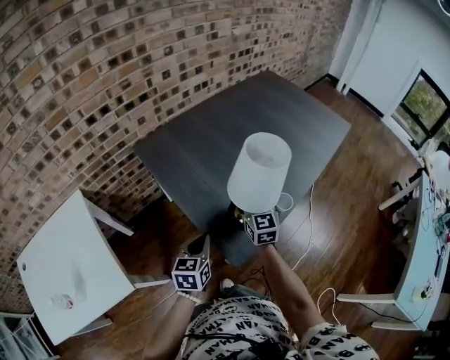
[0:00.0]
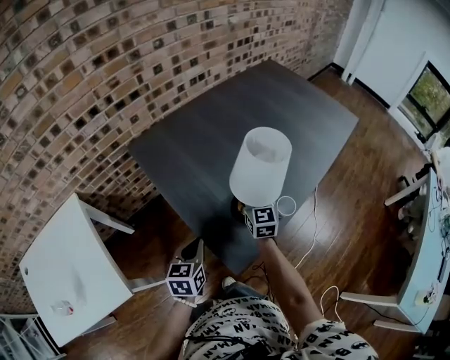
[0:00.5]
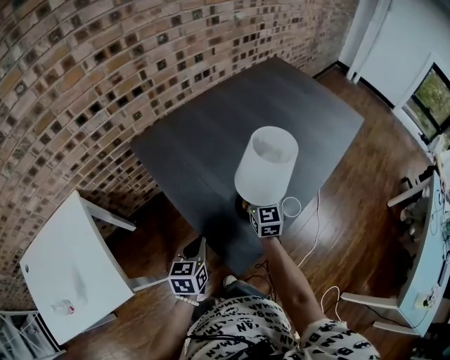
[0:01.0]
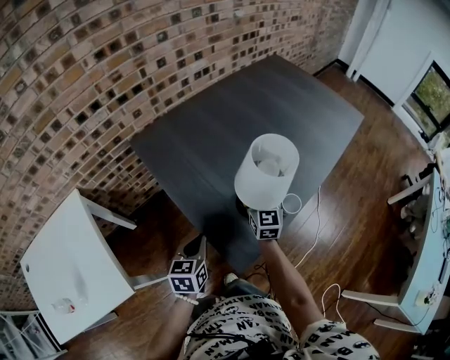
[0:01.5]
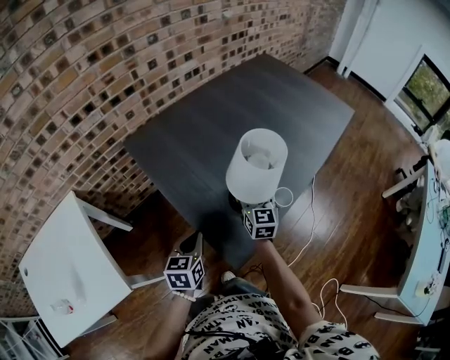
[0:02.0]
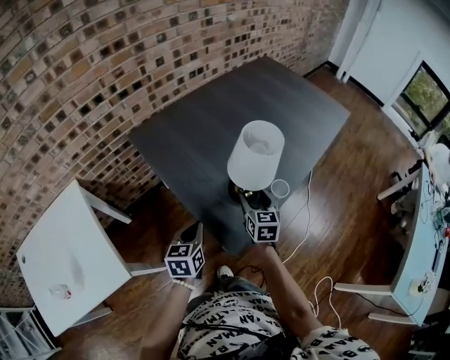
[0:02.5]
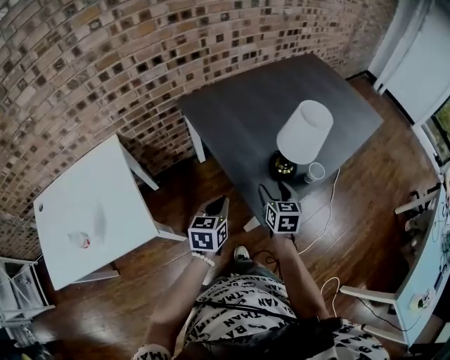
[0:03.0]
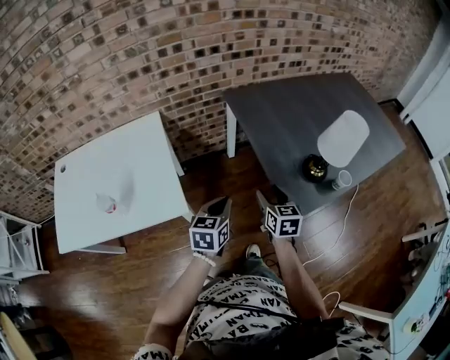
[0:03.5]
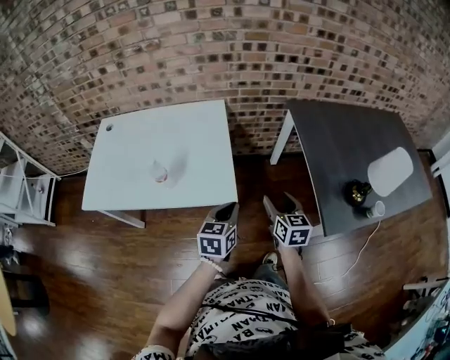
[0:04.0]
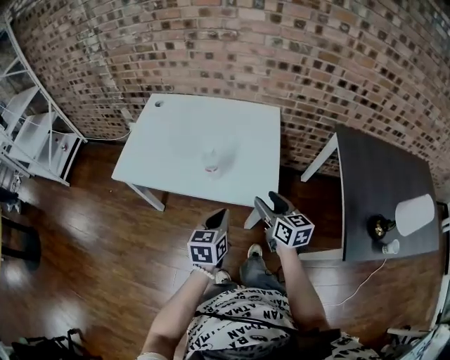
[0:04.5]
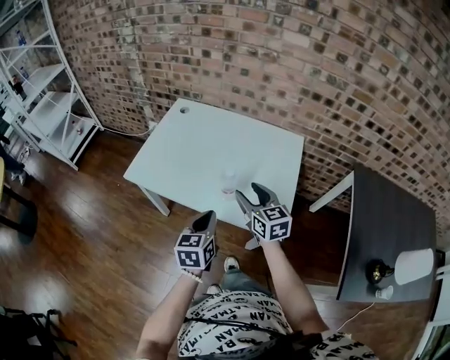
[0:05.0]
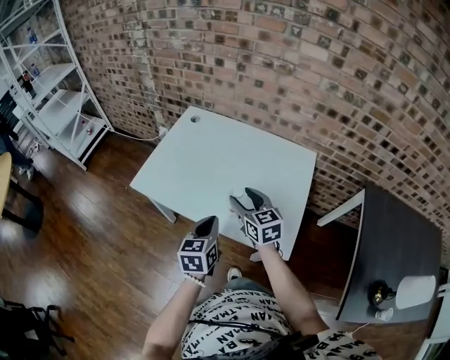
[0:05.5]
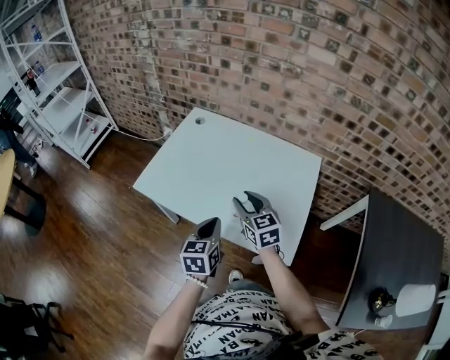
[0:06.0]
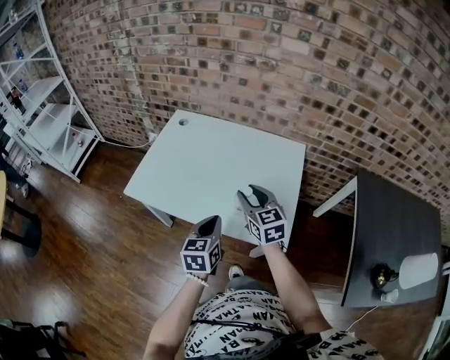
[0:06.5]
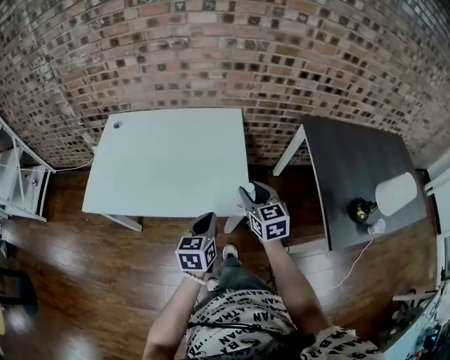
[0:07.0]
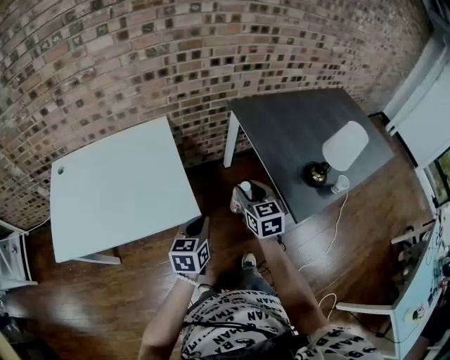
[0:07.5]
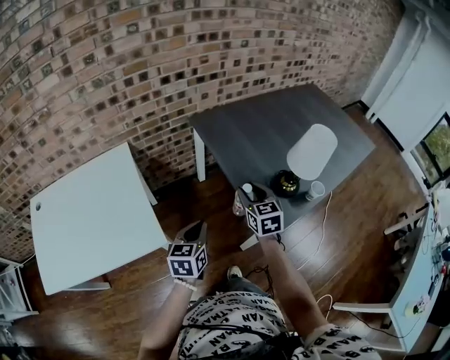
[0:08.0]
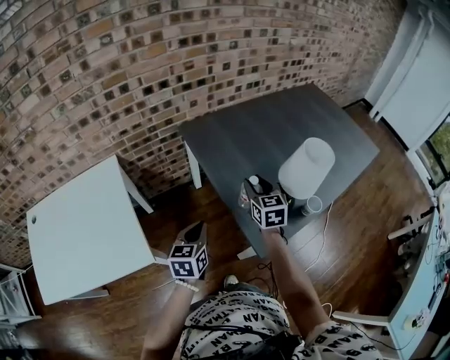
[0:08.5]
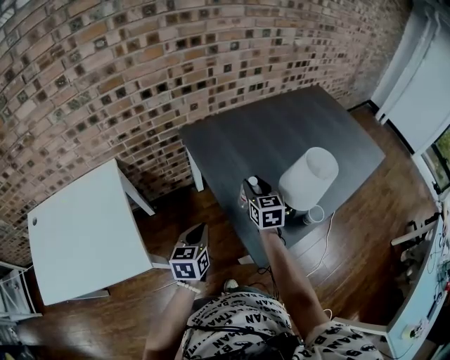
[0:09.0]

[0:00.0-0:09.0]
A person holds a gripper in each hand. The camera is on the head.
0:00.0 to 0:02.0: The right gripper goes approximately 5 cm downward, and opens its fingers.
0:02.0 to 0:04.5: The pair of grippers is taken some 60 cm. The left gripper turns by about 50 degrees, while the right gripper turns by some 70 degrees.
0:04.5 to 0:07.0: The right gripper swivels roughly 20 degrees.
0:07.0 to 0:09.0: The two grippers travel together, approximately 50 cm. The right gripper rotates some 40 degrees, while the left gripper changes its angle by roughly 30 degrees.

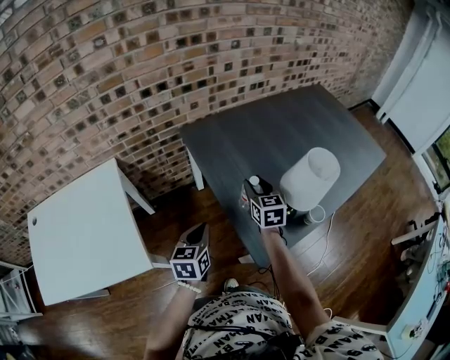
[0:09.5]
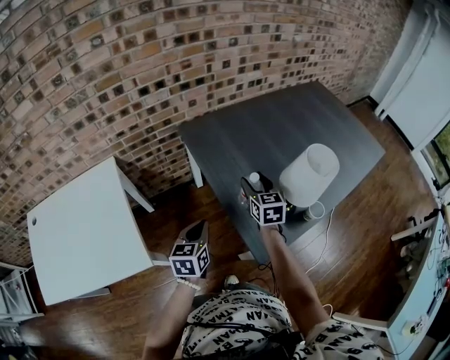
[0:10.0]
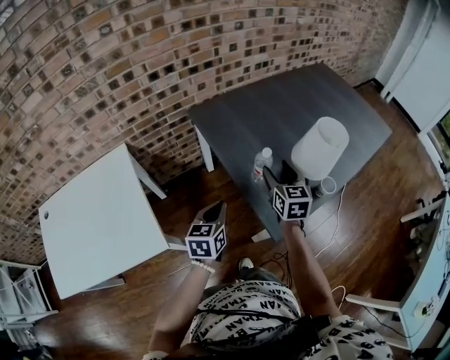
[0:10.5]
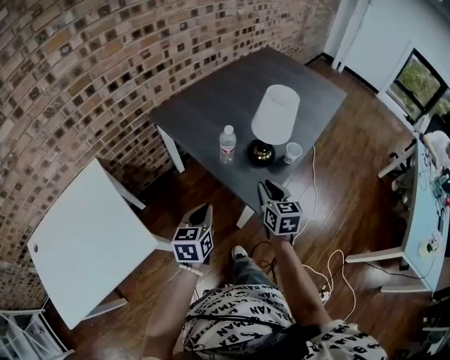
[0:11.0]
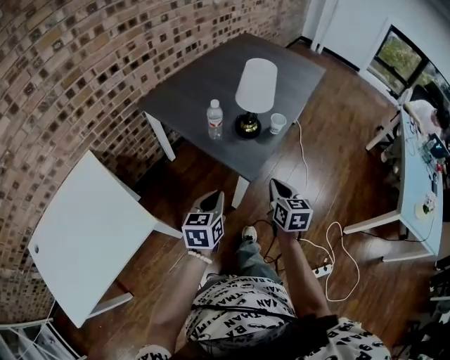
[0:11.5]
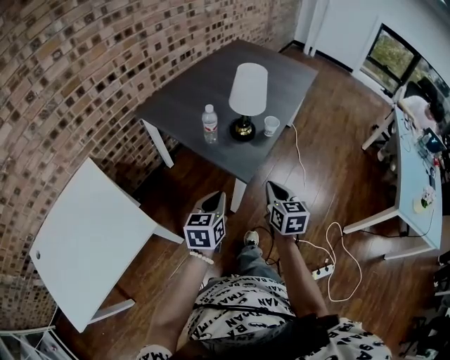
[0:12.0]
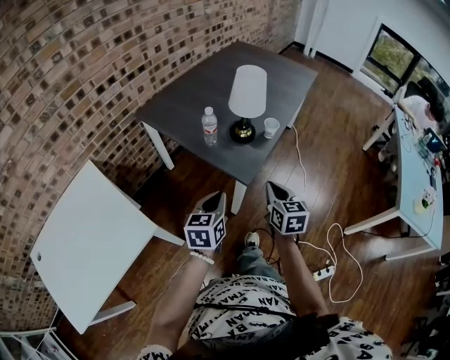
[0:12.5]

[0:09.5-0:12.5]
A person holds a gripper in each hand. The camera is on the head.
0:09.5 to 0:11.0: The left gripper shifts about 10 cm backward; the right gripper shifts about 20 cm backward, and swivels some 20 degrees.
0:11.0 to 0:12.5: The right gripper goes some 15 cm backward and to the right, while the left gripper travels to the right and backward by approximately 10 cm.

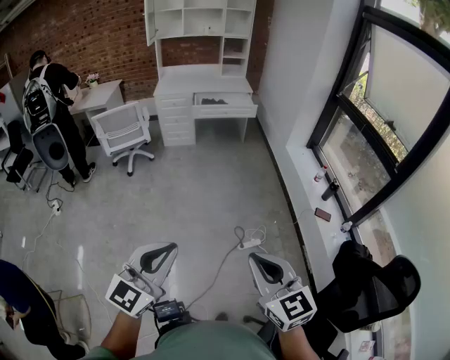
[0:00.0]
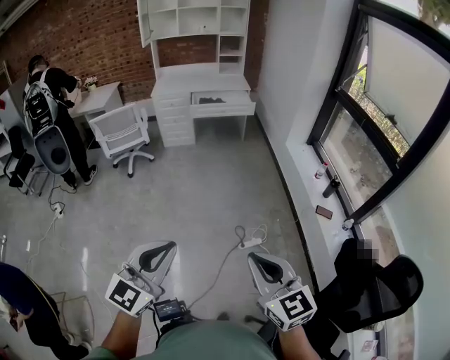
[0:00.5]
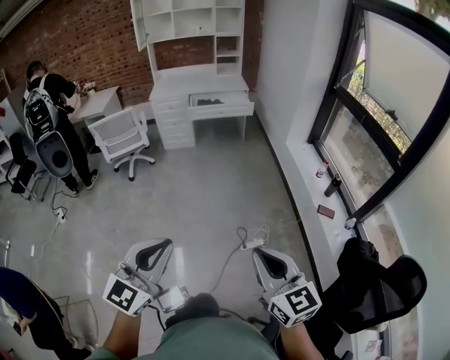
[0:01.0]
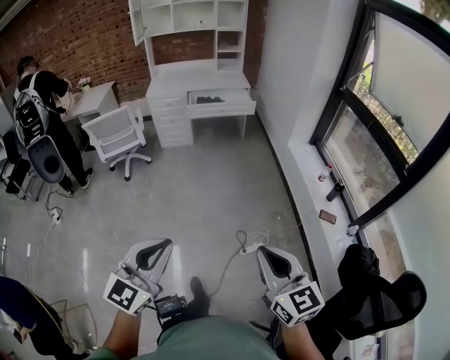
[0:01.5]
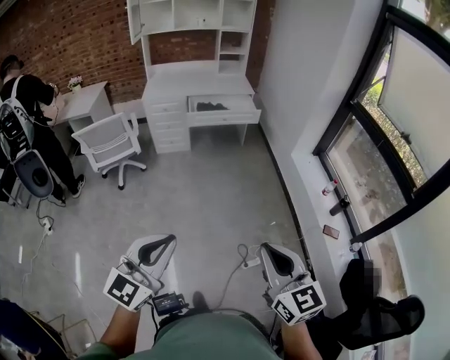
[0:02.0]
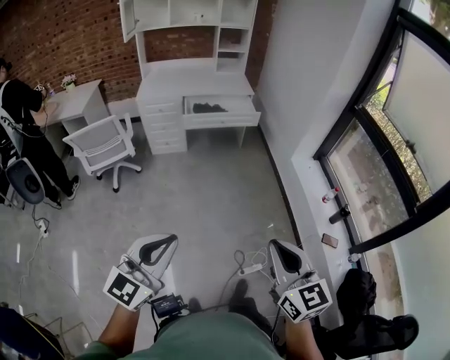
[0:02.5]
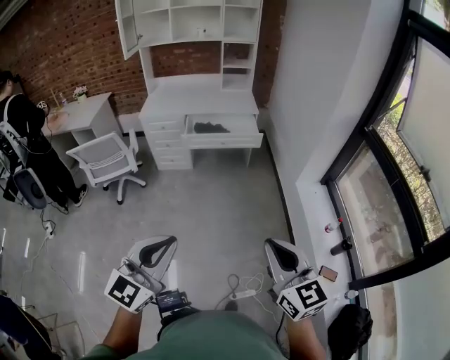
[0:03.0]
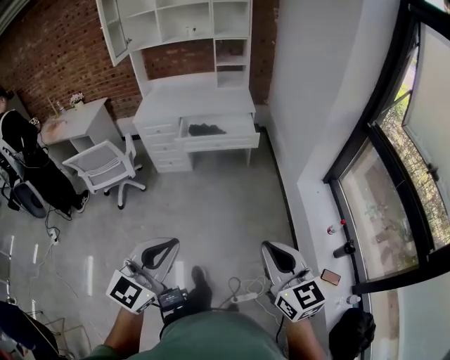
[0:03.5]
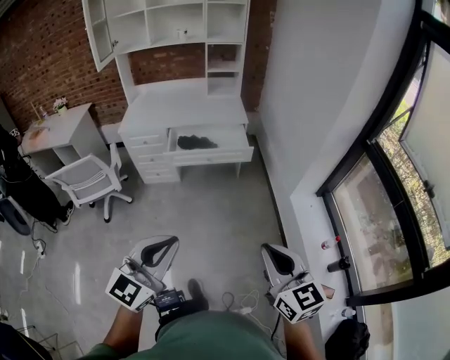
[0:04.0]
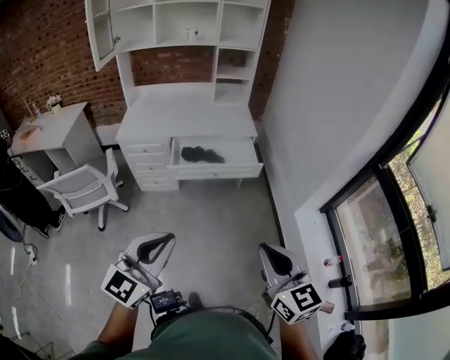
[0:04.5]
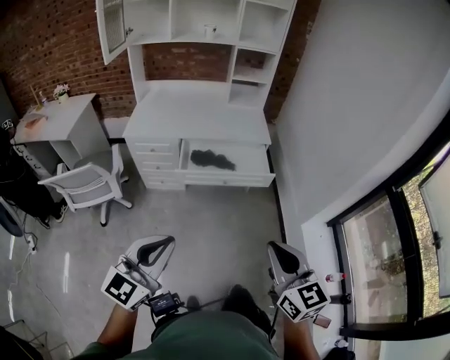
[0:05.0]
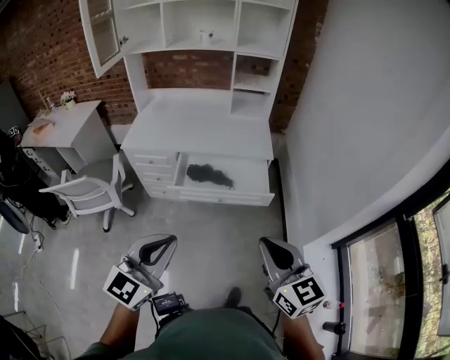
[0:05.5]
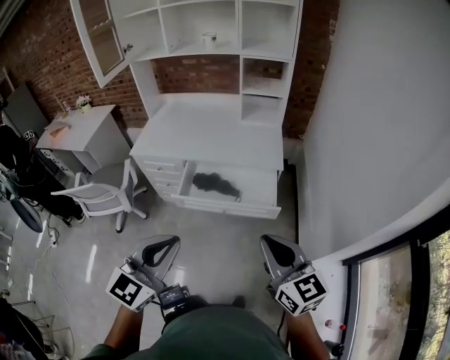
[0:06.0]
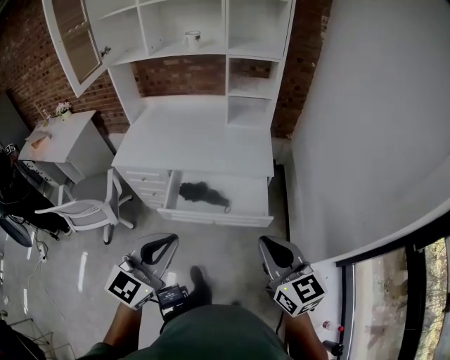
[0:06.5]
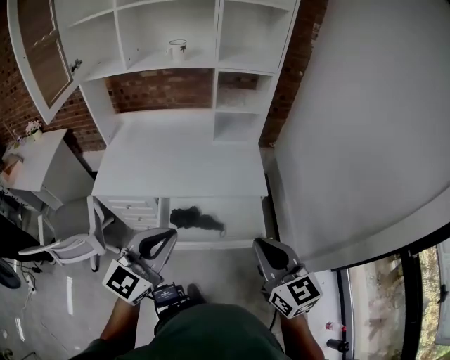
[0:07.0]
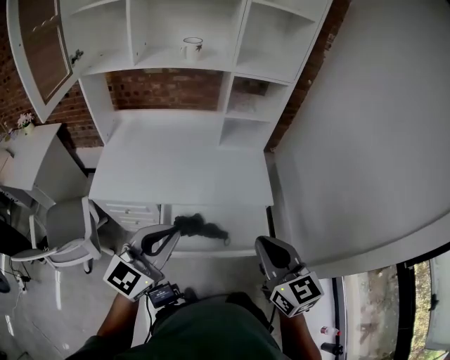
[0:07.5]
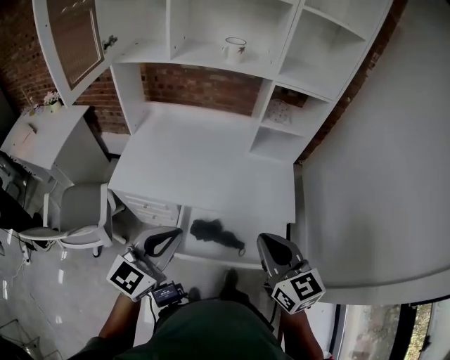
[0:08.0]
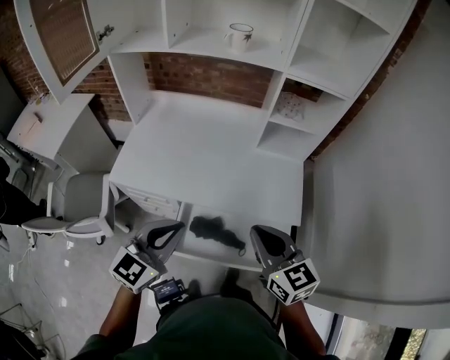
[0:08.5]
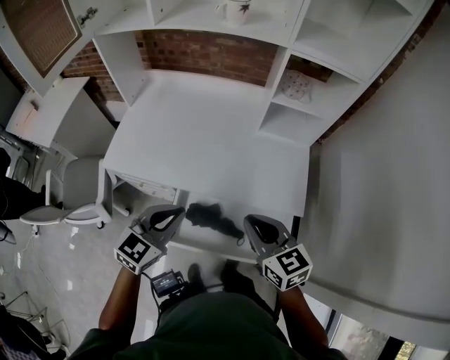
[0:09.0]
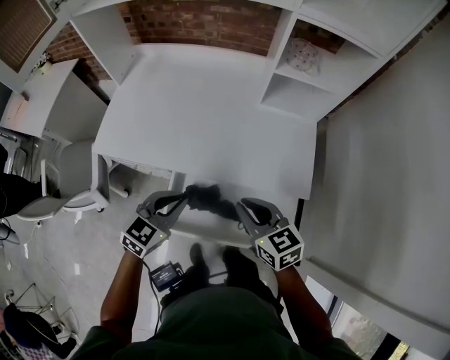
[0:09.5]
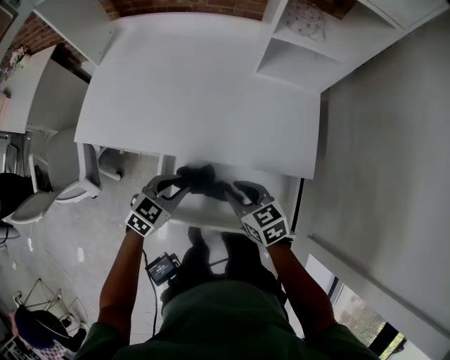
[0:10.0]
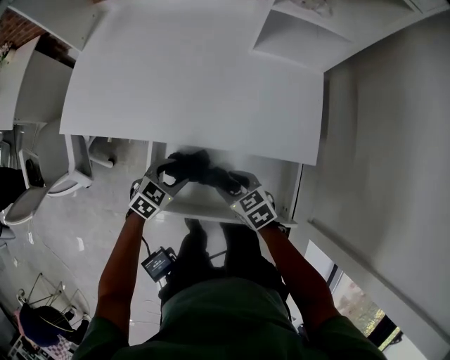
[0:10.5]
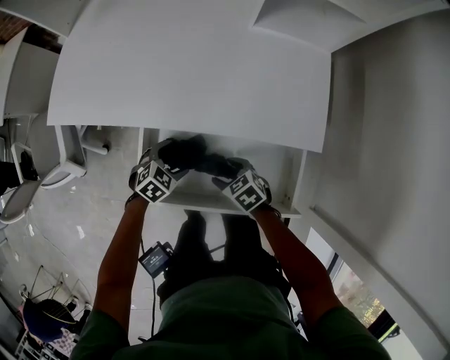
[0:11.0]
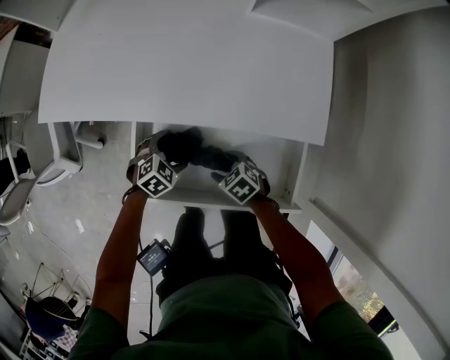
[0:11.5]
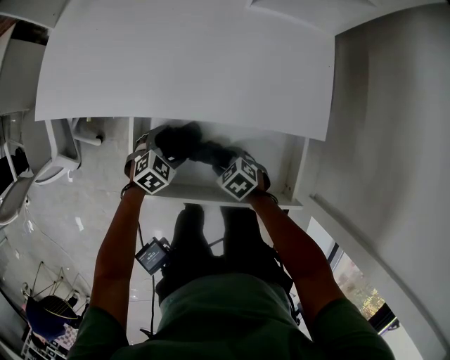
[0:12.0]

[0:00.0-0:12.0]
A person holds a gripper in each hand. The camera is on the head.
0:00.0 to 0:02.0: Both grippers travel together forward, roughly 30 cm.
0:02.0 to 0:04.0: The two grippers travel together, forward, about 50 cm.
0:04.0 to 0:06.0: The two grippers travel together, forward, about 50 cm.
0:06.0 to 0:08.0: Both grippers are carried forward and to the left, about 40 cm.
0:08.0 to 0:10.0: The two grippers go some 40 cm downward and forward. The left gripper angles its fingers downward, by some 40 degrees; the right gripper rotates about 30 degrees, and opens.
0:10.0 to 0:12.0: The two grippers go about 25 cm downward. The left gripper turns by approximately 20 degrees, and opens its fingers. Meanwhile the right gripper rotates approximately 30 degrees.

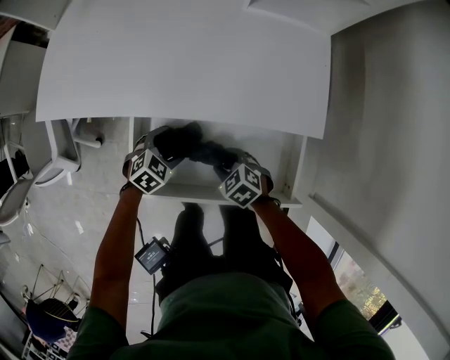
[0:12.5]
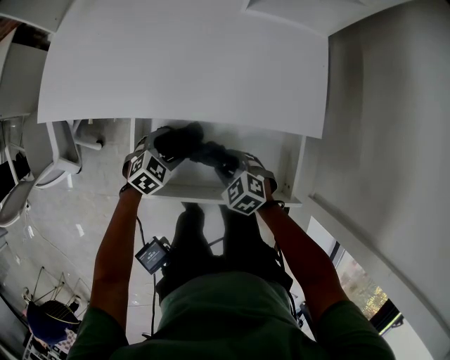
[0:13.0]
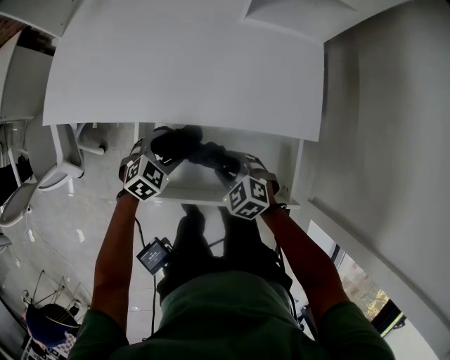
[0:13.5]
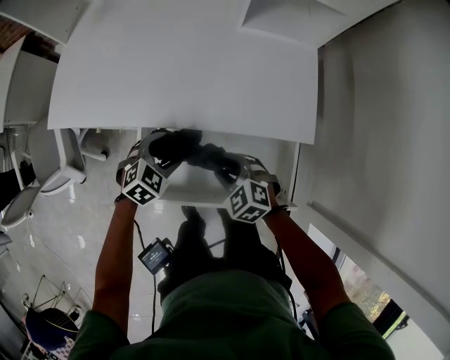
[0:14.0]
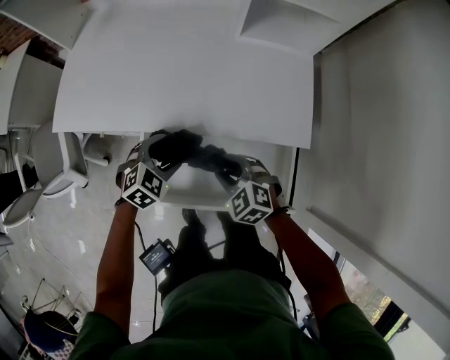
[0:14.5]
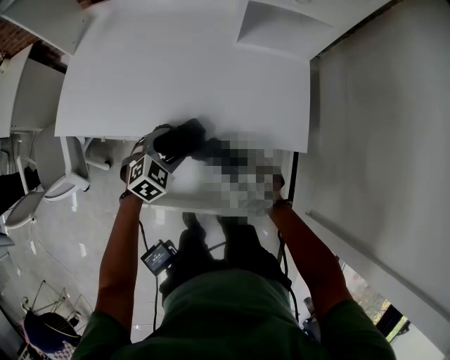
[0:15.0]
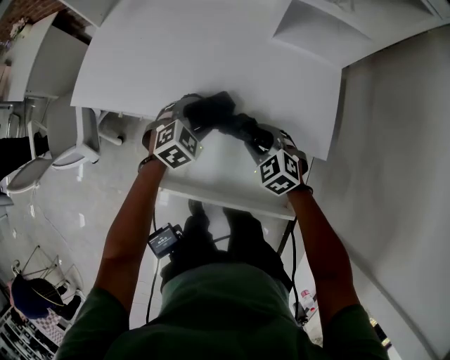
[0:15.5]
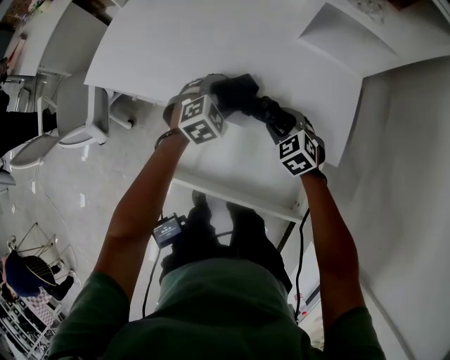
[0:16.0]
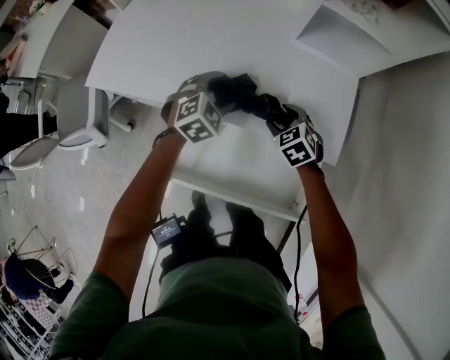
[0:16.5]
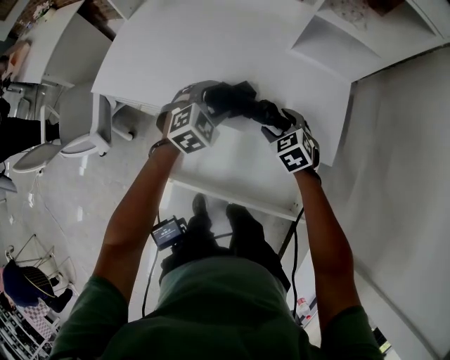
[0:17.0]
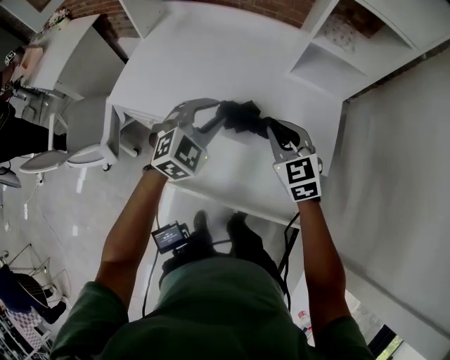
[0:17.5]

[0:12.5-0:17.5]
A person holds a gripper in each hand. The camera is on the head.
0:12.5 to 0:15.0: The left gripper goes roughly 15 cm upward; the right gripper heads upward and forward, covering about 15 cm, and swivels about 20 degrees.
0:15.0 to 0:17.5: The grippers both shift upward by roughly 20 cm. The left gripper rotates about 30 degrees, and closes its fingers, while the right gripper turns by some 20 degrees, and closes its fingers.
